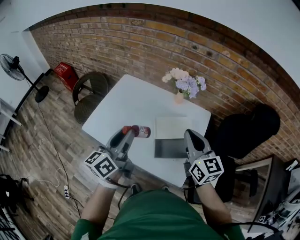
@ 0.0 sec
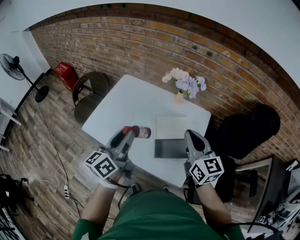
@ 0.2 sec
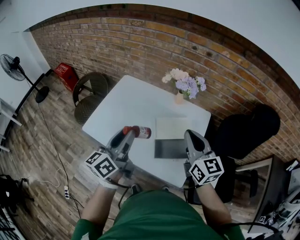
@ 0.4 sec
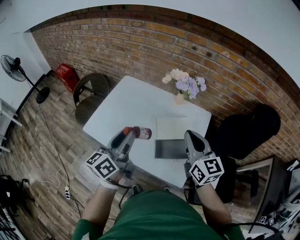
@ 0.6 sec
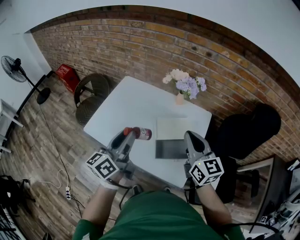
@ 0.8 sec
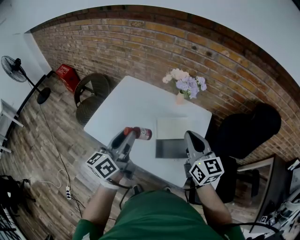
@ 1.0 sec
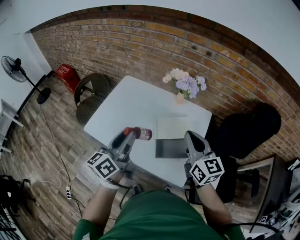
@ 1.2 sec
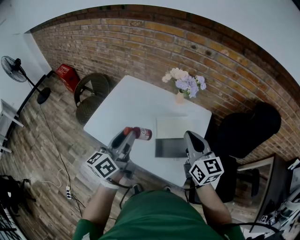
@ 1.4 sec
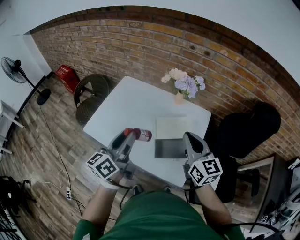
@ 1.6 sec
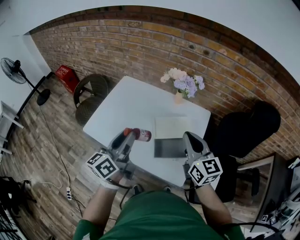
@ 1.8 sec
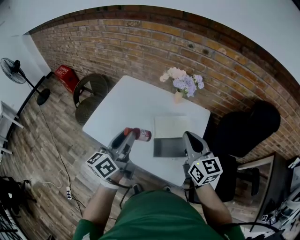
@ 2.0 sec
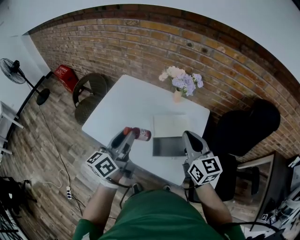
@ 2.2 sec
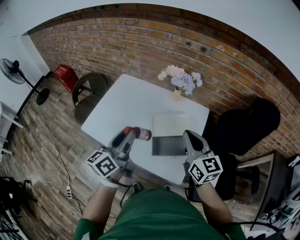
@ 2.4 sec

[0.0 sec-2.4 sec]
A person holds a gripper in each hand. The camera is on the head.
0.0 sec to 1.2 sec: Neither gripper changes place.
1.2 sec to 2.4 sec: The grippers move only a little.

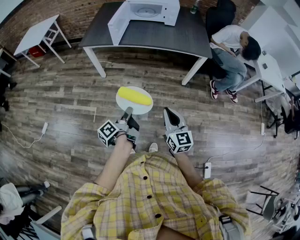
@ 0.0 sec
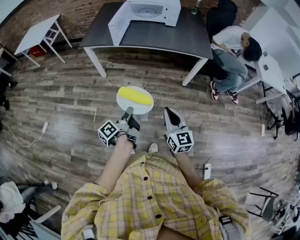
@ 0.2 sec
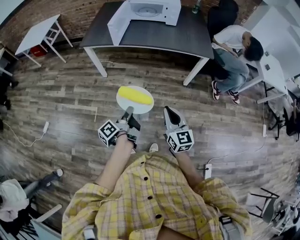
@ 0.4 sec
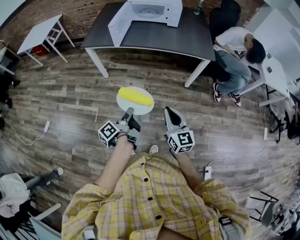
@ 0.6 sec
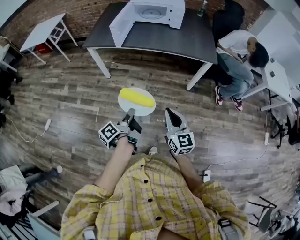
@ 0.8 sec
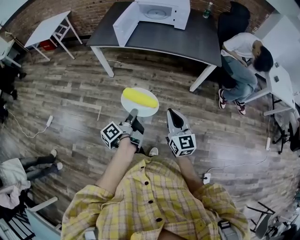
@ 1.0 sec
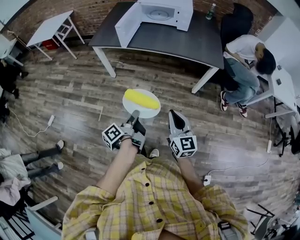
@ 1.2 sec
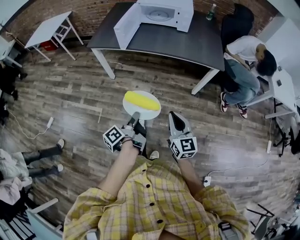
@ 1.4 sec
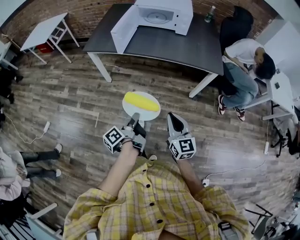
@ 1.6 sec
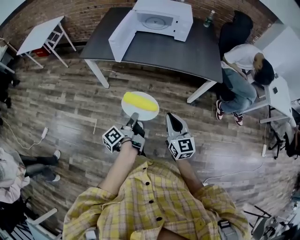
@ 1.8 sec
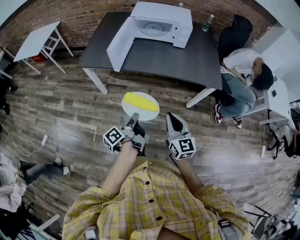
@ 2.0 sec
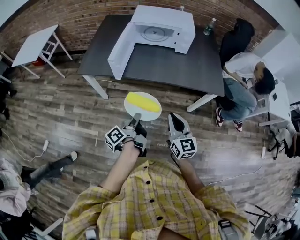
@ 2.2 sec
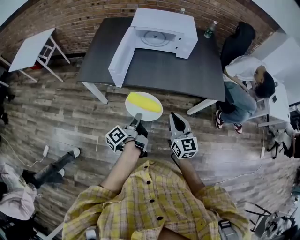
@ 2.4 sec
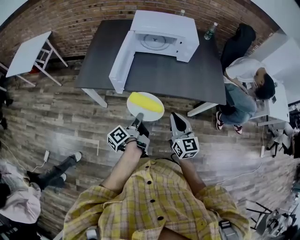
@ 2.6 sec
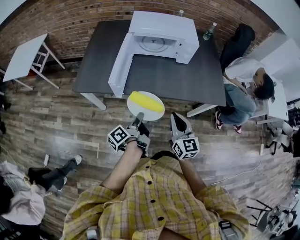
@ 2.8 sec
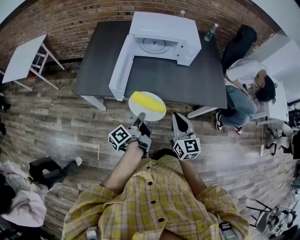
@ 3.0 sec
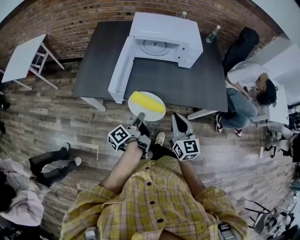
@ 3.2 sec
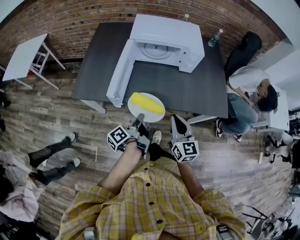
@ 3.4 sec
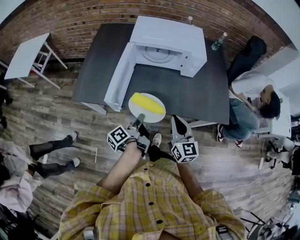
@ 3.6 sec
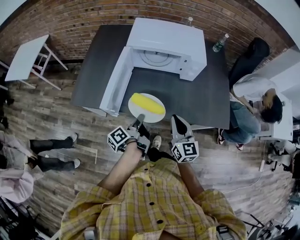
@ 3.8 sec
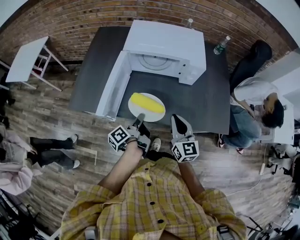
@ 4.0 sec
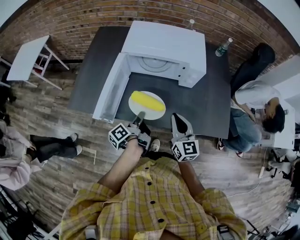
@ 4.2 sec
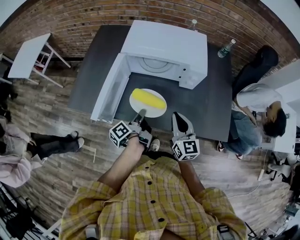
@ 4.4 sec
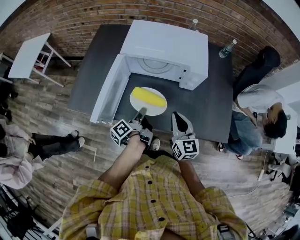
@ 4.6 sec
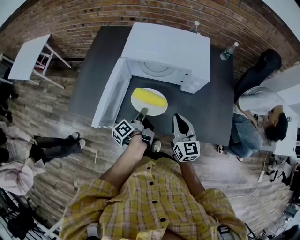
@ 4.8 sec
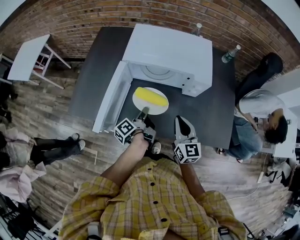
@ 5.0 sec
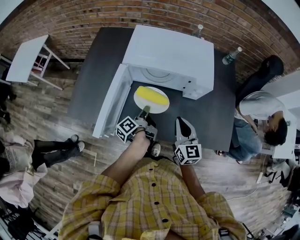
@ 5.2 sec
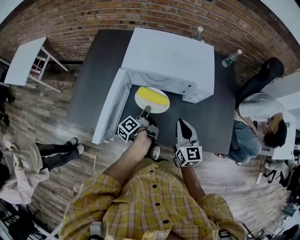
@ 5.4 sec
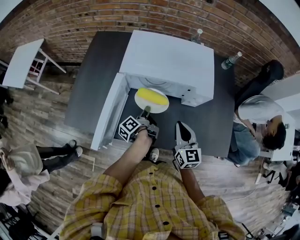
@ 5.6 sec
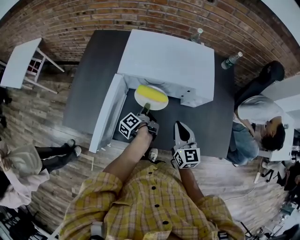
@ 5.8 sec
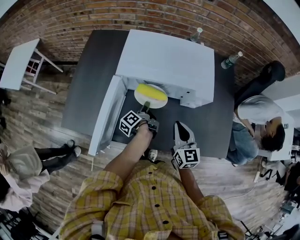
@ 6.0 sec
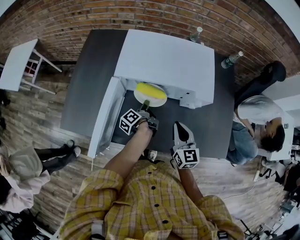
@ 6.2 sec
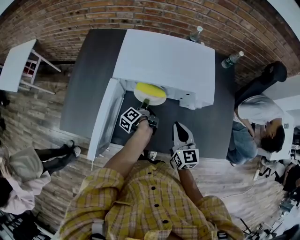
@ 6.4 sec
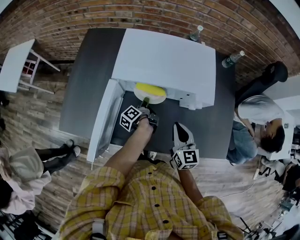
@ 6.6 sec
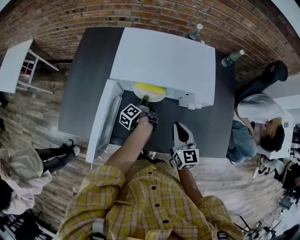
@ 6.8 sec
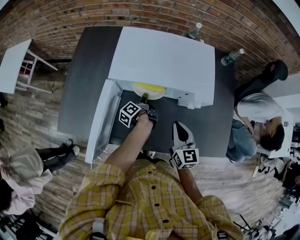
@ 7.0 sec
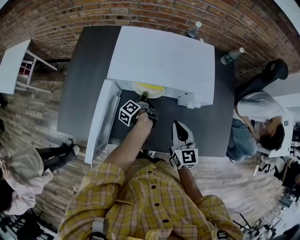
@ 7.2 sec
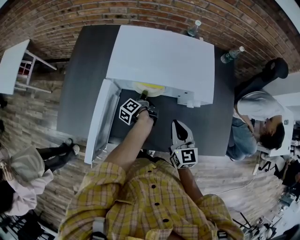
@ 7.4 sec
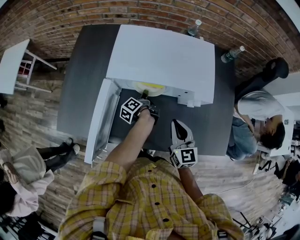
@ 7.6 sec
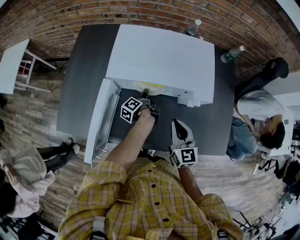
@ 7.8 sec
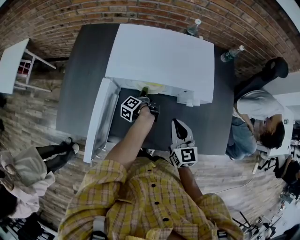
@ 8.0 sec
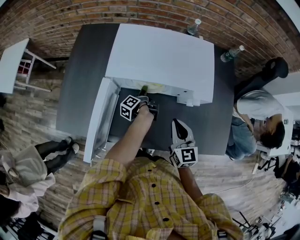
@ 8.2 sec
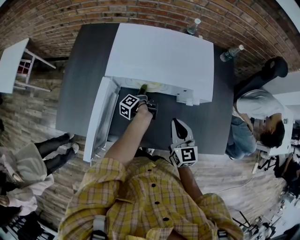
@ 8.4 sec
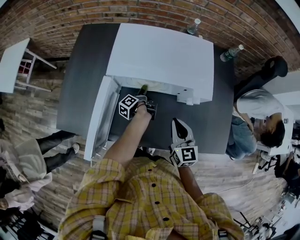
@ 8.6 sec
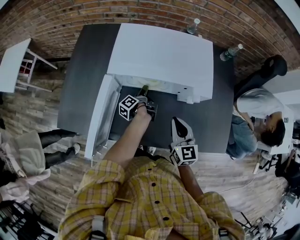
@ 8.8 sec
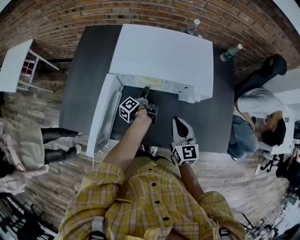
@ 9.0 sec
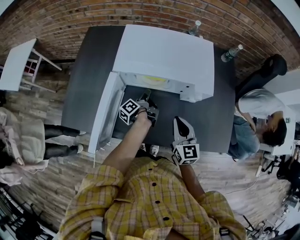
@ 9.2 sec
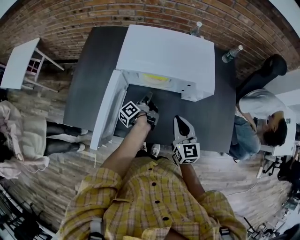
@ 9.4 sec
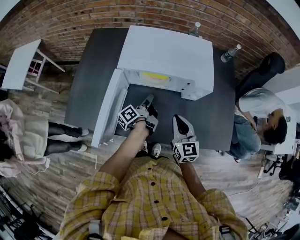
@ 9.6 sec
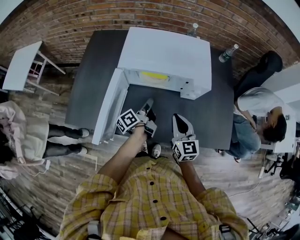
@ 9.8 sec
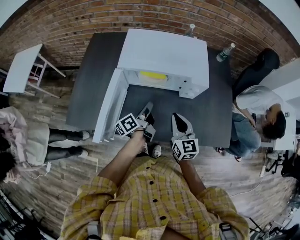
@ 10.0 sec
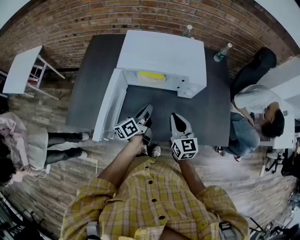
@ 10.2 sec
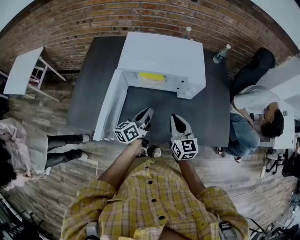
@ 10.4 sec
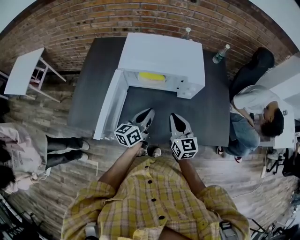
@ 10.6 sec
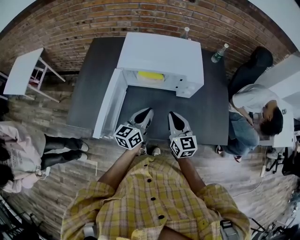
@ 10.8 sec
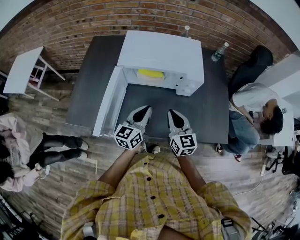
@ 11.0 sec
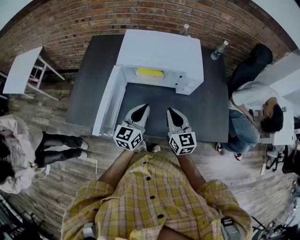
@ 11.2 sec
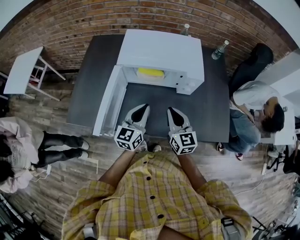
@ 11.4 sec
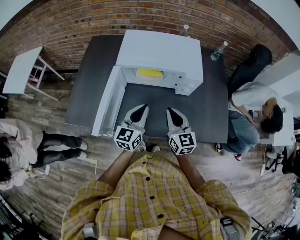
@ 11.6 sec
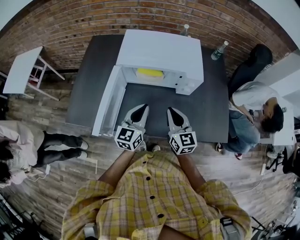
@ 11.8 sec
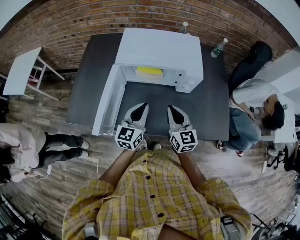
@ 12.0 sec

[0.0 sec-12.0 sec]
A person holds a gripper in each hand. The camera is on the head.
0.0 sec to 1.6 sec: The right gripper ends up some 10 cm from where it was.
1.6 sec to 3.0 sec: The right gripper moves about 35 cm.
3.0 sec to 4.4 sec: The right gripper ends up some 20 cm from where it was.
4.4 sec to 6.0 sec: The right gripper moves approximately 10 cm.
9.0 sec to 10.4 sec: The right gripper moves about 5 cm.

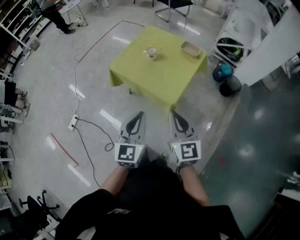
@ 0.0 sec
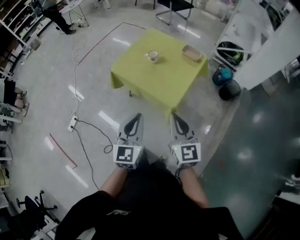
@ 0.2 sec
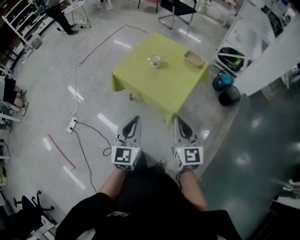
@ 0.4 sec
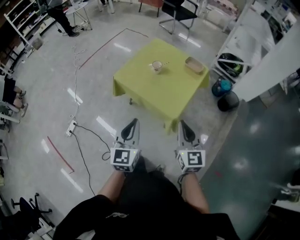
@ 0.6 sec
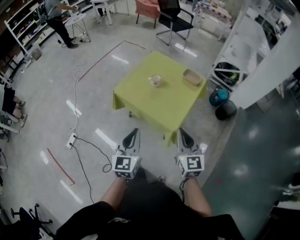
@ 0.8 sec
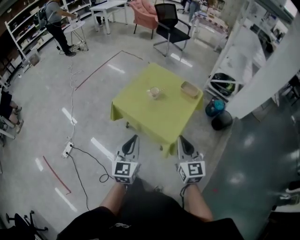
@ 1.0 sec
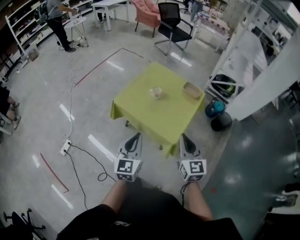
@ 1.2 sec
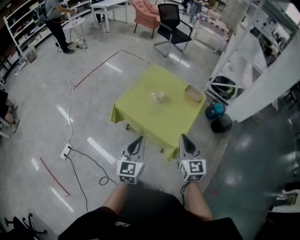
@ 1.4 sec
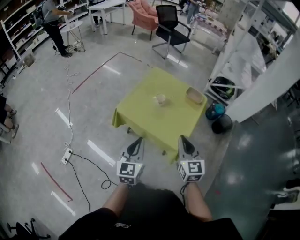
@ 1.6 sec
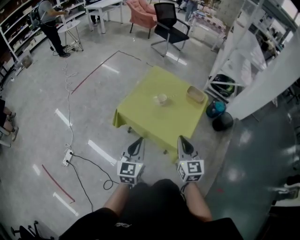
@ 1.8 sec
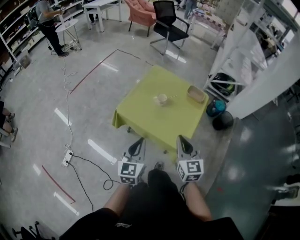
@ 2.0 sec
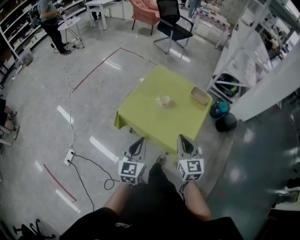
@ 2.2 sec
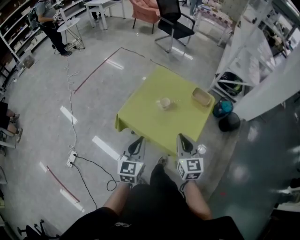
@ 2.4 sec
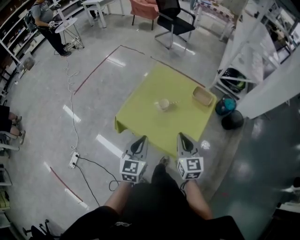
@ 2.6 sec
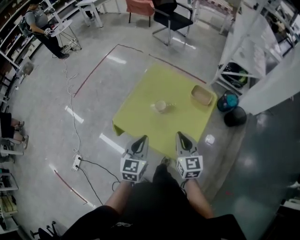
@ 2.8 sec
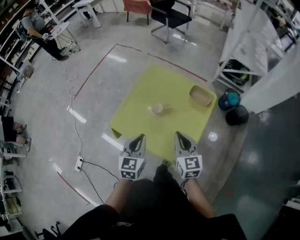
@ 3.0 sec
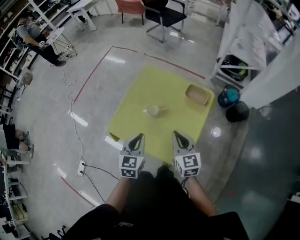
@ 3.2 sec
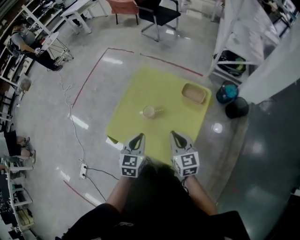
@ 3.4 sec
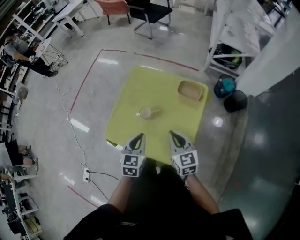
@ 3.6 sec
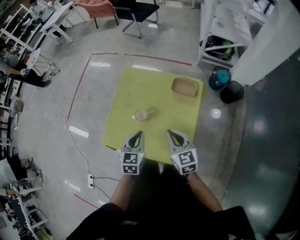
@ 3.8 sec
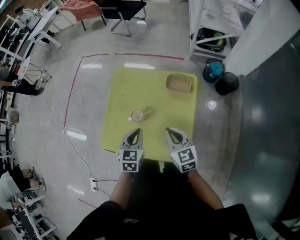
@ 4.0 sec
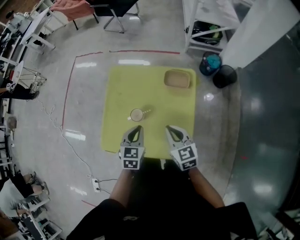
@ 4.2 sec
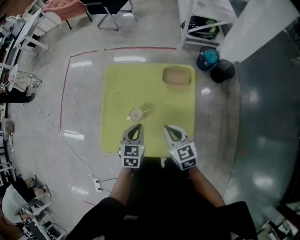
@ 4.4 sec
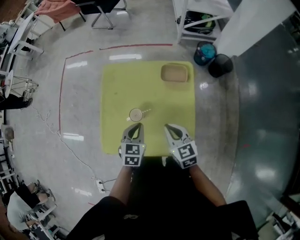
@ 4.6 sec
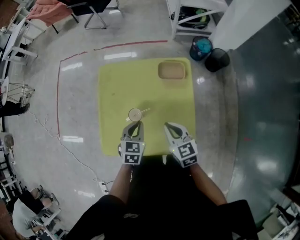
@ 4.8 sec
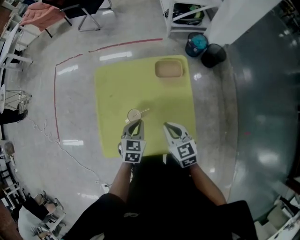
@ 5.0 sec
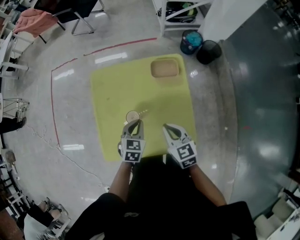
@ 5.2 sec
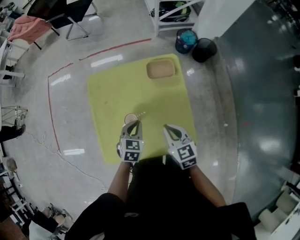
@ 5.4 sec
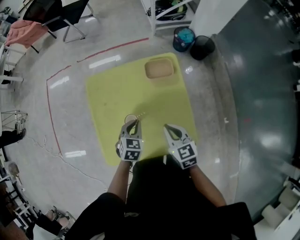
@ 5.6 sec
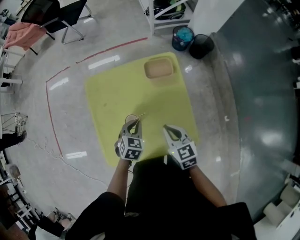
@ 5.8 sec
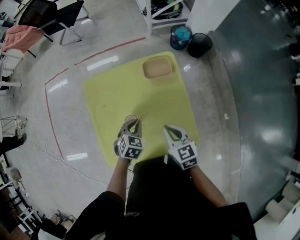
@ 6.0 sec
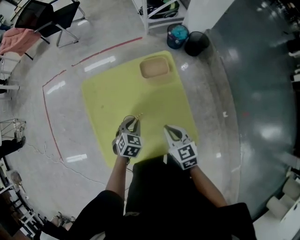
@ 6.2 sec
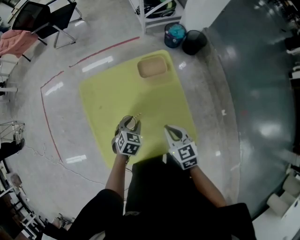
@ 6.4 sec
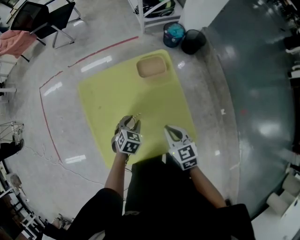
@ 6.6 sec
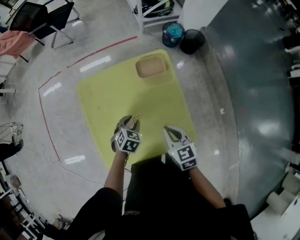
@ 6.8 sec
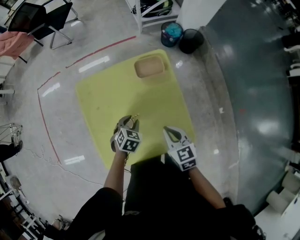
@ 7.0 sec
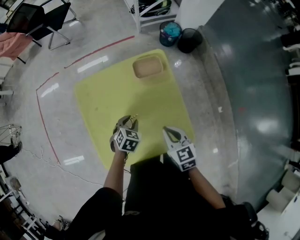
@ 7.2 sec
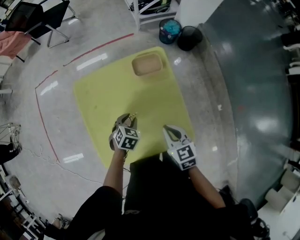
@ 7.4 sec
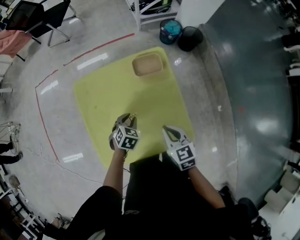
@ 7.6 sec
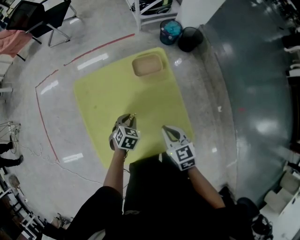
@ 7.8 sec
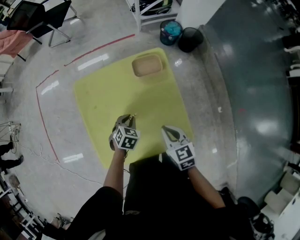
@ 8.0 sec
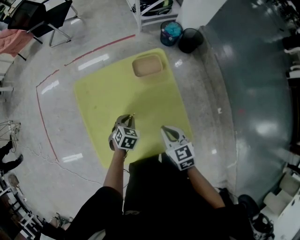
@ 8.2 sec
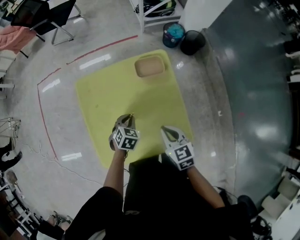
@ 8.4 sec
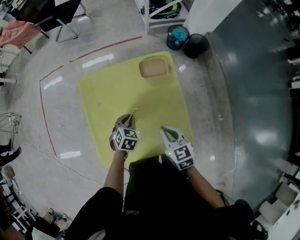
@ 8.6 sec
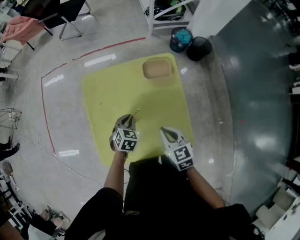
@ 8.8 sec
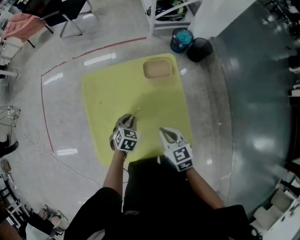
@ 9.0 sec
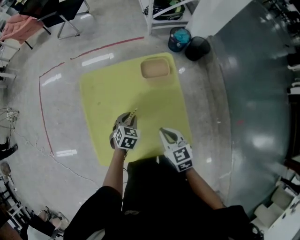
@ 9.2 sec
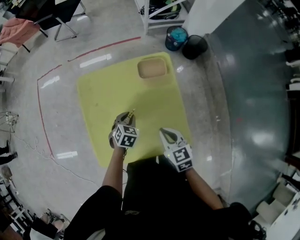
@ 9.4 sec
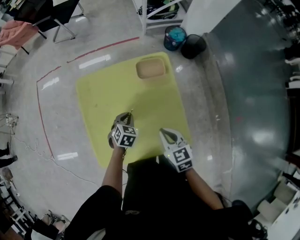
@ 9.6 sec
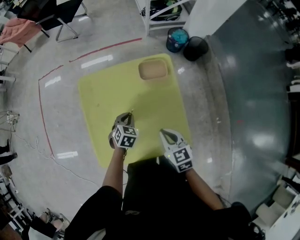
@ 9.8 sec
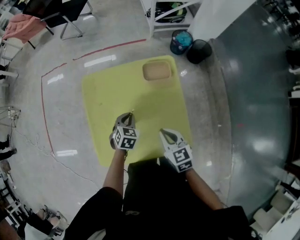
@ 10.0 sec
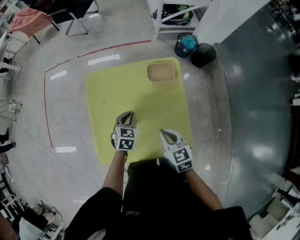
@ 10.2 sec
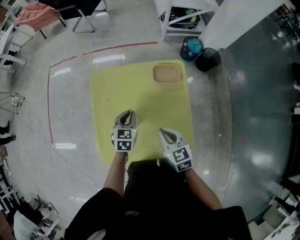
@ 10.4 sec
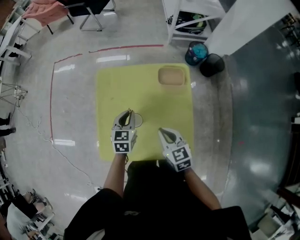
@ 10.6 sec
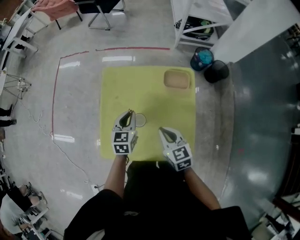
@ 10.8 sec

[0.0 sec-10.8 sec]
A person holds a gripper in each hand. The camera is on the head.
0.0 sec to 1.6 sec: The right gripper travels forward and to the left by some 15 cm, while the left gripper goes roughly 20 cm to the left and forward.
1.6 sec to 3.0 sec: The left gripper shifts about 20 cm forward. The right gripper moves forward and downward, some 25 cm.
3.0 sec to 4.6 sec: The right gripper travels forward and downward by roughly 10 cm. Meanwhile the left gripper goes approximately 20 cm forward and downward, and swivels about 30 degrees.
4.6 sec to 6.2 sec: The left gripper is displaced downward by roughly 5 cm, and turns by approximately 30 degrees.
6.2 sec to 9.2 sec: The grippers make only small movements.
9.2 sec to 10.8 sec: The left gripper shifts about 10 cm upward and to the left, and changes its angle by approximately 40 degrees, while the right gripper moves approximately 5 cm.
